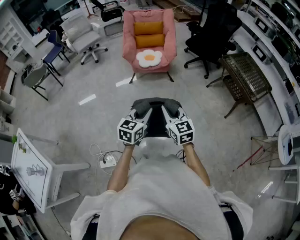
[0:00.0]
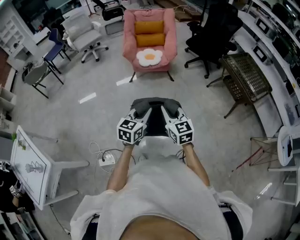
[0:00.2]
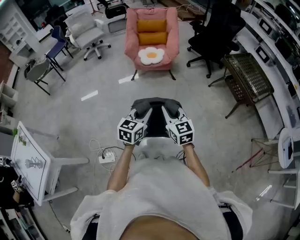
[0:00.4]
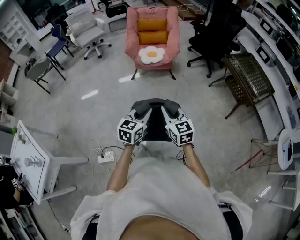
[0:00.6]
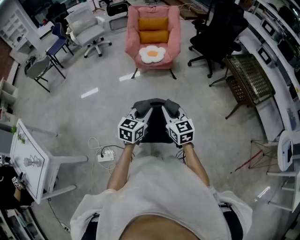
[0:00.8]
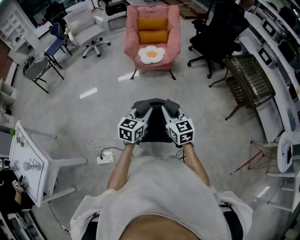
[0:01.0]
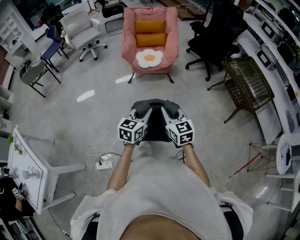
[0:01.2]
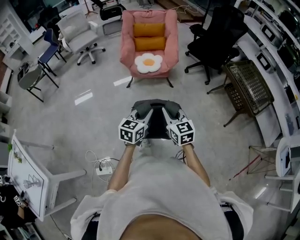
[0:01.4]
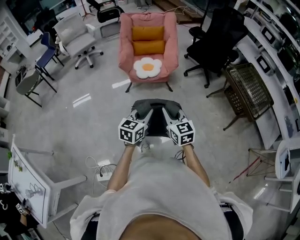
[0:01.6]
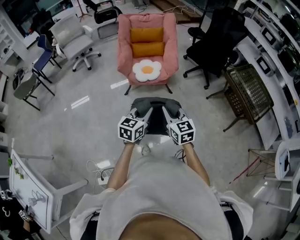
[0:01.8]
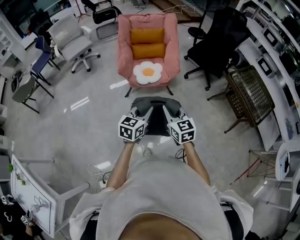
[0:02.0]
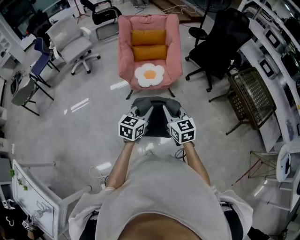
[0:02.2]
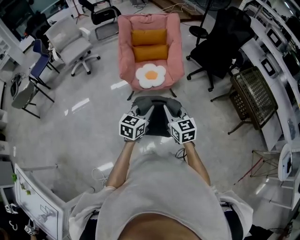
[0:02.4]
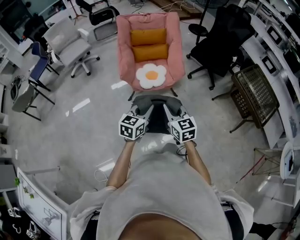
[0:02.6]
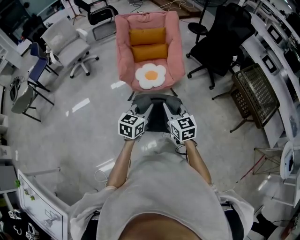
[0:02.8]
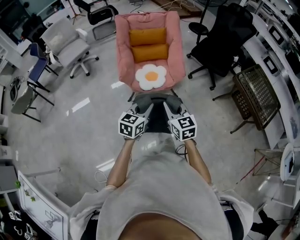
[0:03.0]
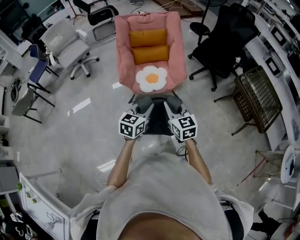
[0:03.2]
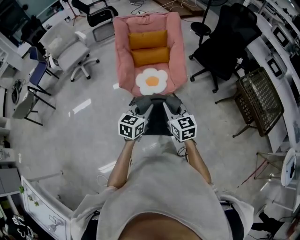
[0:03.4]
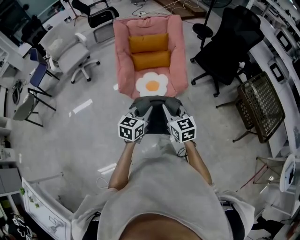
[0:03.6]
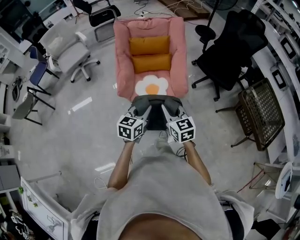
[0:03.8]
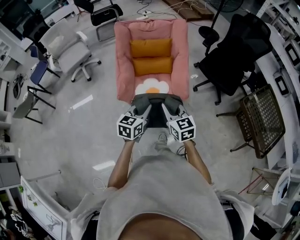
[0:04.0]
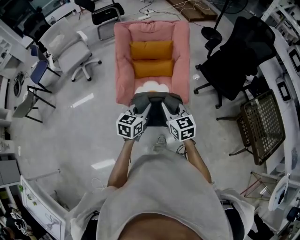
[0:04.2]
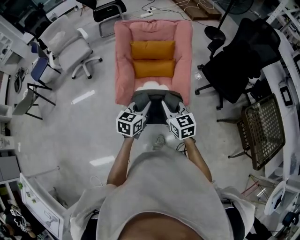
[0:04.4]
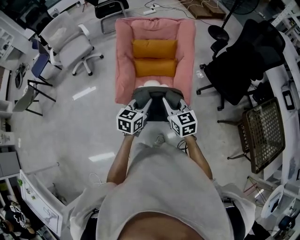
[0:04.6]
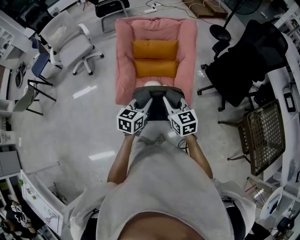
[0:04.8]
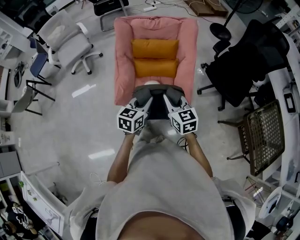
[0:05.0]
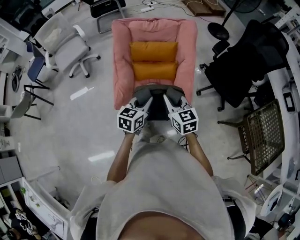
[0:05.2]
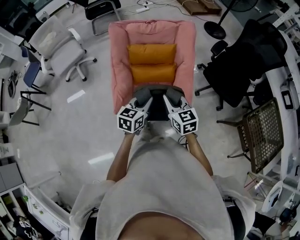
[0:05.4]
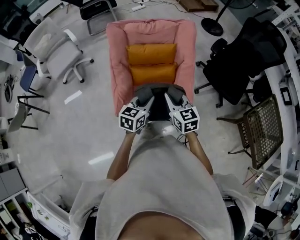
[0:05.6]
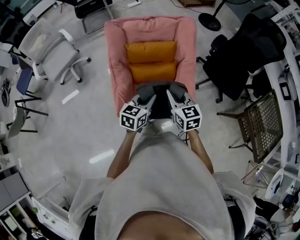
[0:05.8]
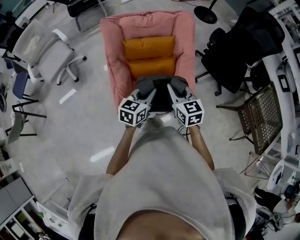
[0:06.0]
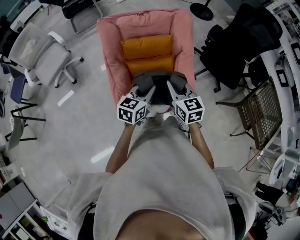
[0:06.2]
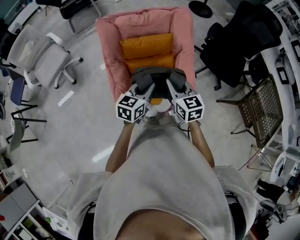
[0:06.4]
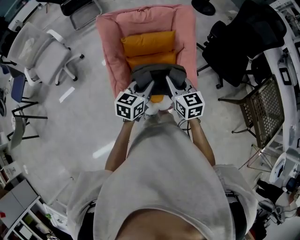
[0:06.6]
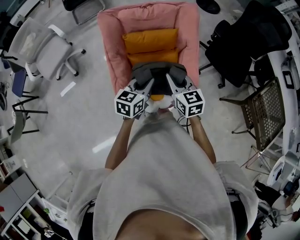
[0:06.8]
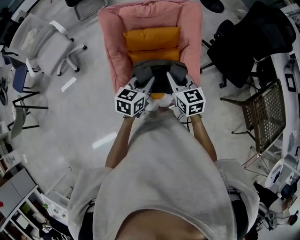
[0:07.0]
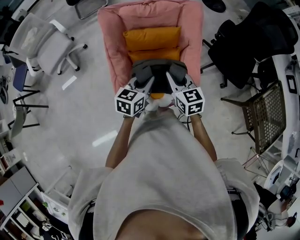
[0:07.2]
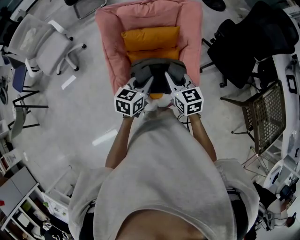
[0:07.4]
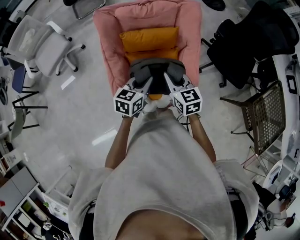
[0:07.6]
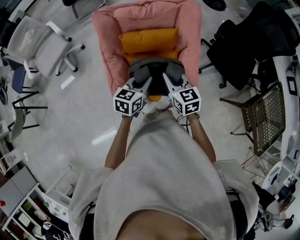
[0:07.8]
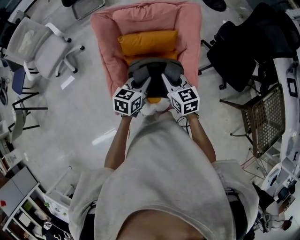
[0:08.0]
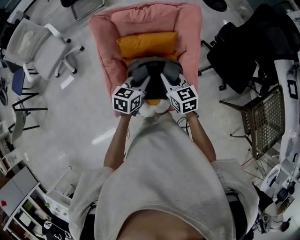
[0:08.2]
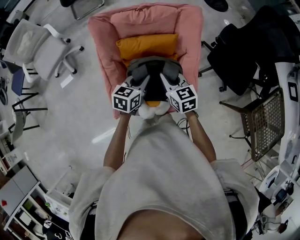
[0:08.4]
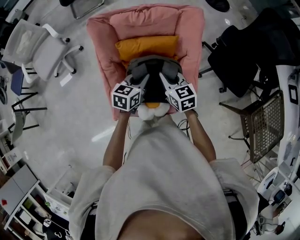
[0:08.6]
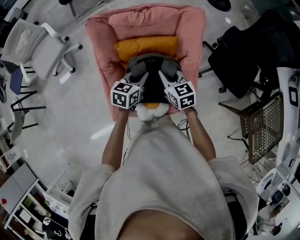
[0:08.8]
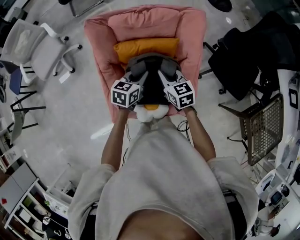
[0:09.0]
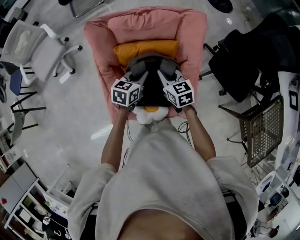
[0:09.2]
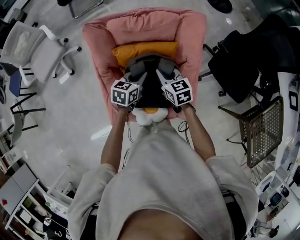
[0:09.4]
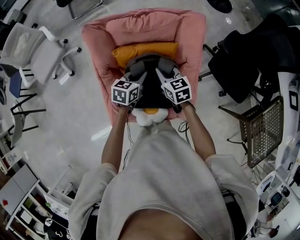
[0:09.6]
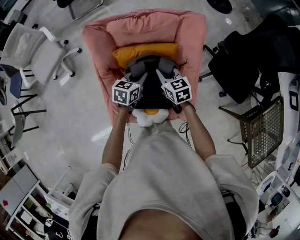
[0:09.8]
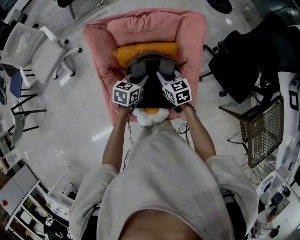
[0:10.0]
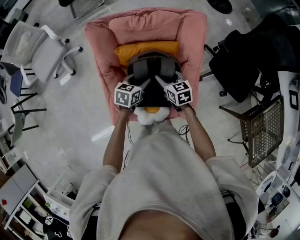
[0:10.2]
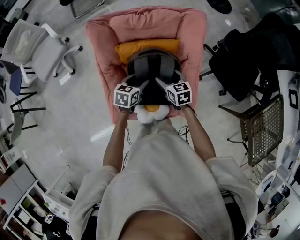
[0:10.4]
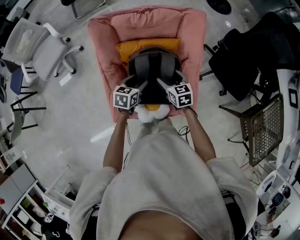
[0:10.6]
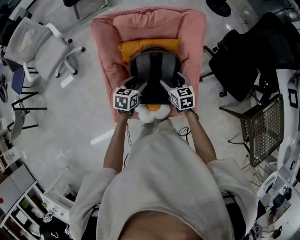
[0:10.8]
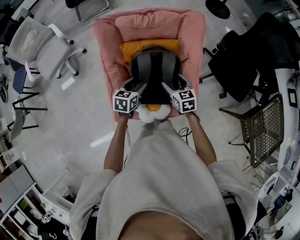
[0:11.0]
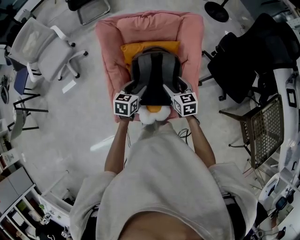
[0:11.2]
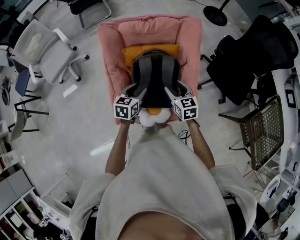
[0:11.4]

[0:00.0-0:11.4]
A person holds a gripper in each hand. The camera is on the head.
0:00.0 to 0:01.4: Both grippers travel together forward, roughly 15 cm.
0:01.4 to 0:02.8: Both grippers move forward, roughly 25 cm.
0:02.8 to 0:04.2: The grippers both shift forward by roughly 30 cm.
0:04.2 to 0:05.6: Both grippers move forward, approximately 20 cm.
0:05.6 to 0:07.2: Both grippers travel together forward, approximately 10 cm.
0:07.2 to 0:08.6: Both grippers move forward and downward, approximately 15 cm.
0:08.6 to 0:10.0: The left gripper goes approximately 10 cm downward and forward. The right gripper travels forward and downward by about 10 cm.
0:10.0 to 0:11.4: The right gripper travels backward and upward by about 15 cm, and opens. Meanwhile the left gripper goes about 15 cm backward, and opens up.

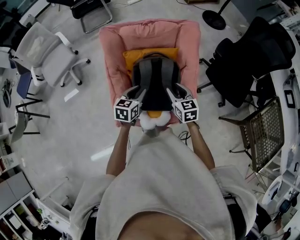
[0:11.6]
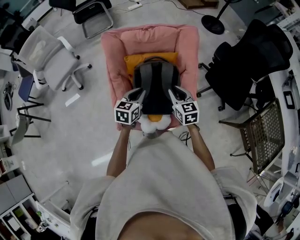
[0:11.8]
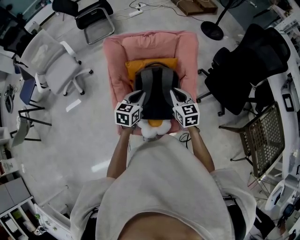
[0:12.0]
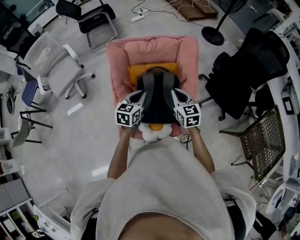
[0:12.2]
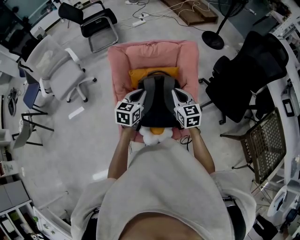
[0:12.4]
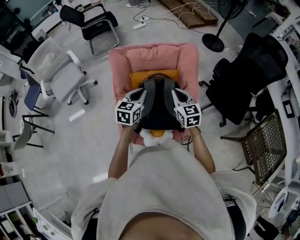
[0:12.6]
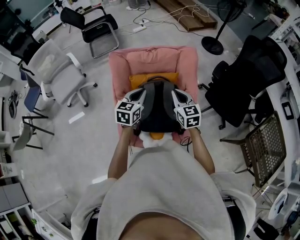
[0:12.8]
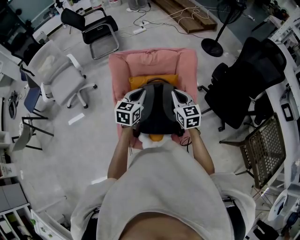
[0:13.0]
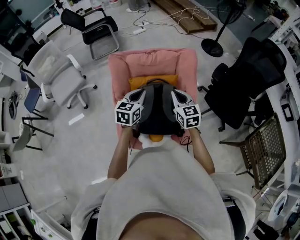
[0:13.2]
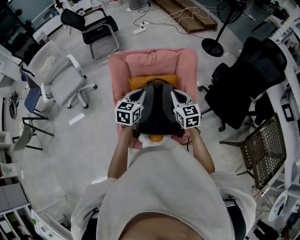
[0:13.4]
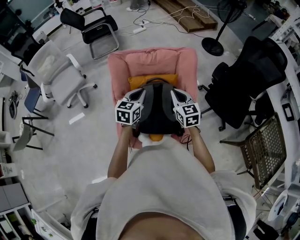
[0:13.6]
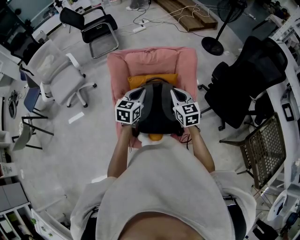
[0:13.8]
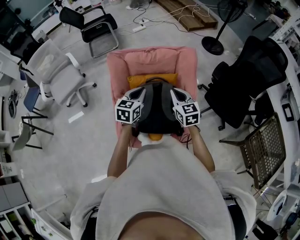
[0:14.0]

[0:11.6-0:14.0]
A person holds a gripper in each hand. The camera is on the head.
0:11.6 to 0:12.8: The two grippers go some 10 cm upward. The right gripper closes its fingers; the left gripper closes its fingers.
0:12.8 to 0:14.0: The grippers stay close to where they were, moving slightly.

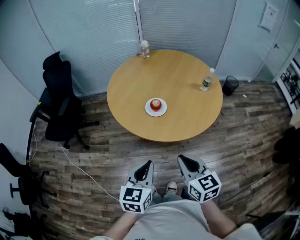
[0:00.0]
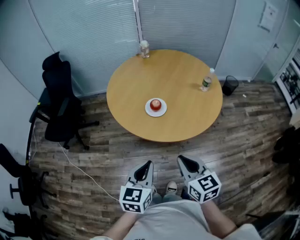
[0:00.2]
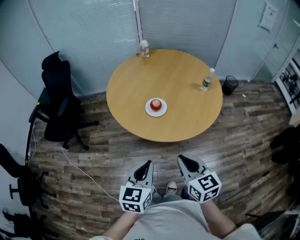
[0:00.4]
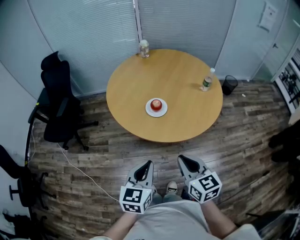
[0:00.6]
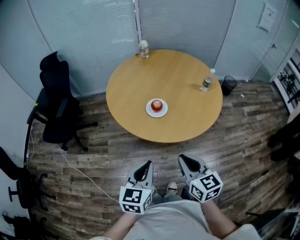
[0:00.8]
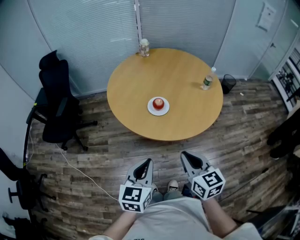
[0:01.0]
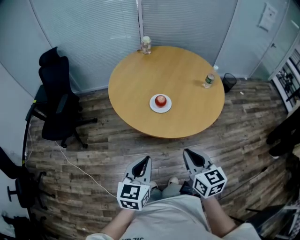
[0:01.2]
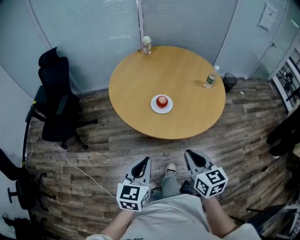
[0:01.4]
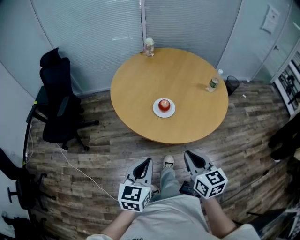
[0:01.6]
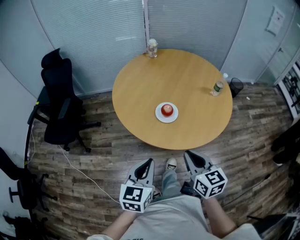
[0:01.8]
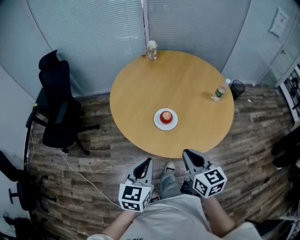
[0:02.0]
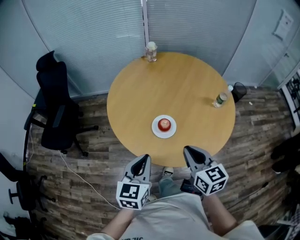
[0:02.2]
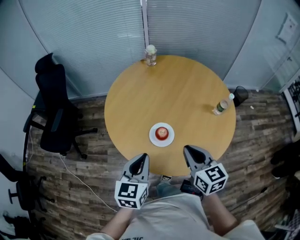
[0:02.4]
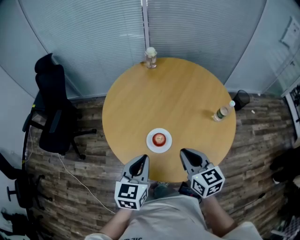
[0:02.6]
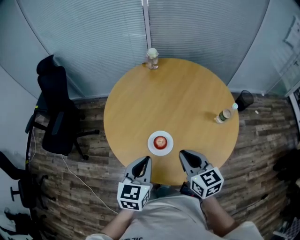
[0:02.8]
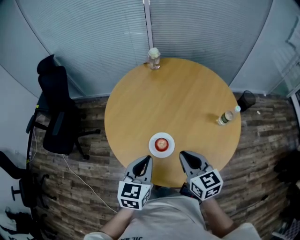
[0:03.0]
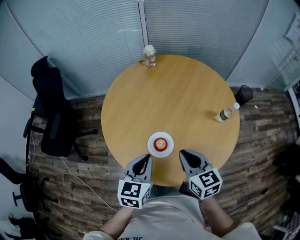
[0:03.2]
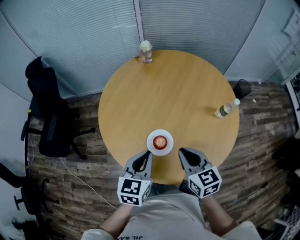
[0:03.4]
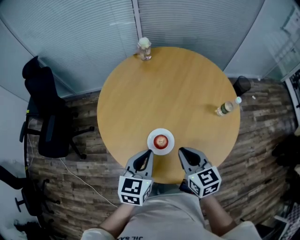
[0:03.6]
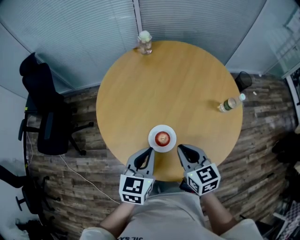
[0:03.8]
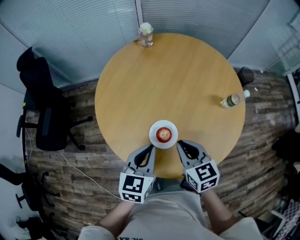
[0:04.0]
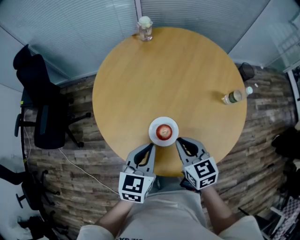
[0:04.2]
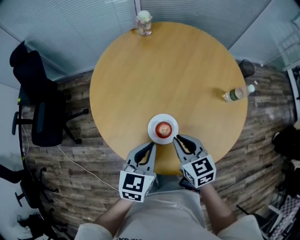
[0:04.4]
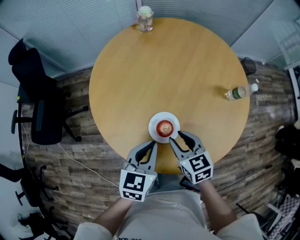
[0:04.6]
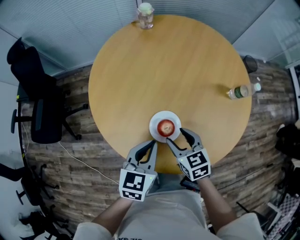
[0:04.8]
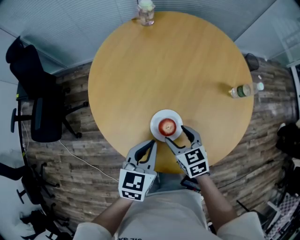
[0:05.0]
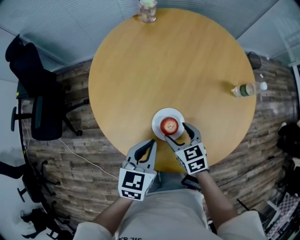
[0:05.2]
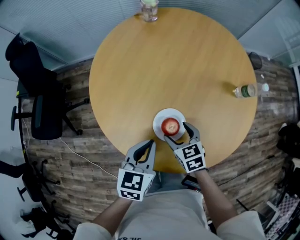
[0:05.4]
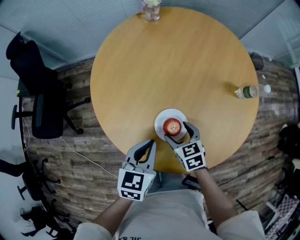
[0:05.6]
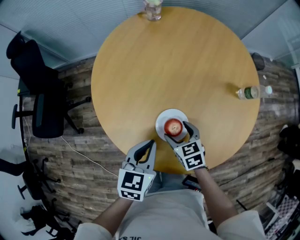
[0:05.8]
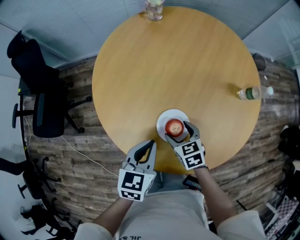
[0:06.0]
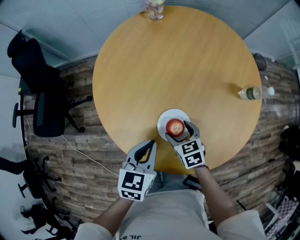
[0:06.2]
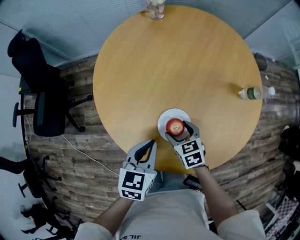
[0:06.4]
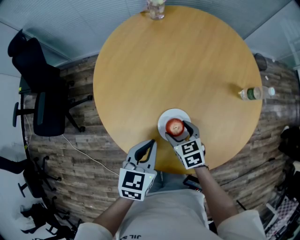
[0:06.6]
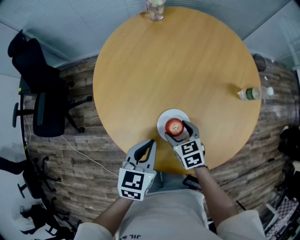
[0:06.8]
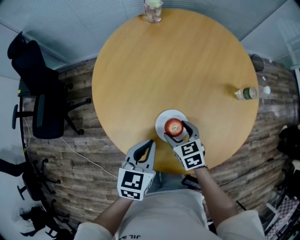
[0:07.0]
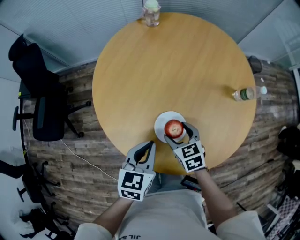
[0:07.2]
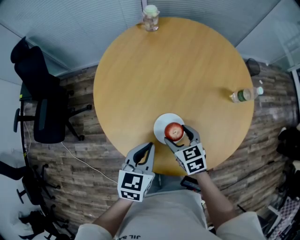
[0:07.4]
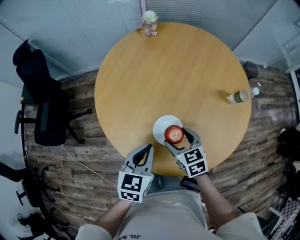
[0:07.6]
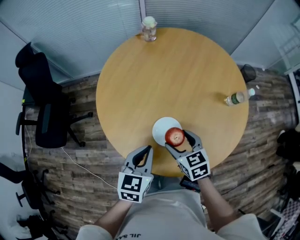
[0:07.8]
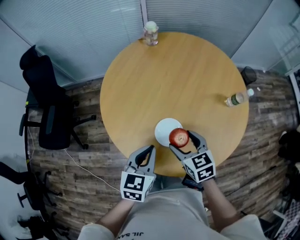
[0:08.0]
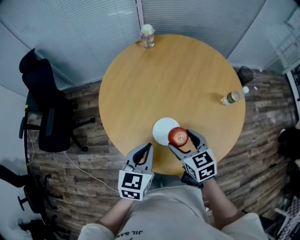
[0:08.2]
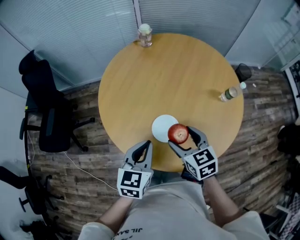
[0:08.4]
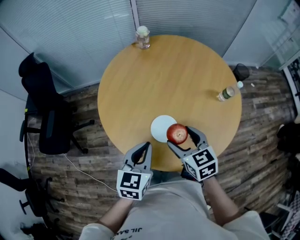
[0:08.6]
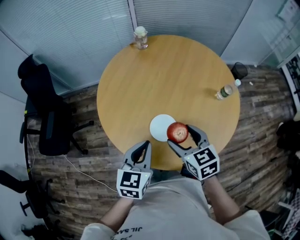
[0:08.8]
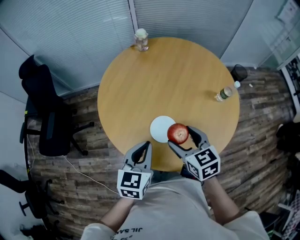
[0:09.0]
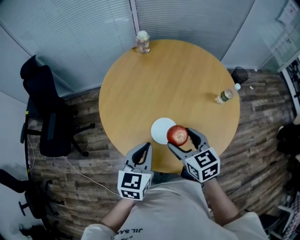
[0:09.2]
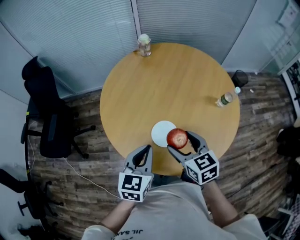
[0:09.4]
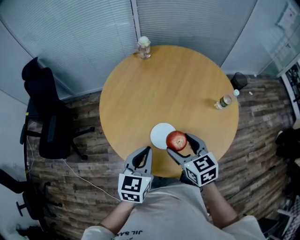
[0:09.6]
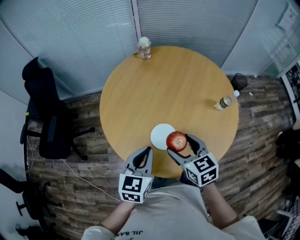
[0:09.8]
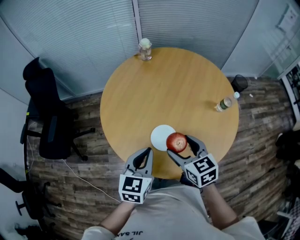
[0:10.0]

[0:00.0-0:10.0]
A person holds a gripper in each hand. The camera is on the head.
0:00.0 to 0:01.4: The left gripper travels to the left by approximately 5 cm.
0:01.4 to 0:02.8: The two grippers go approximately 25 cm forward.
0:02.8 to 0:04.2: The right gripper travels downward by approximately 10 cm, while the left gripper goes some 10 cm downward and forward.
0:04.2 to 0:05.8: The right gripper shifts approximately 15 cm downward, and opens up; the left gripper moves downward, roughly 5 cm.
0:05.8 to 0:07.2: The grippers move only a little.
0:07.2 to 0:08.6: The right gripper shifts some 15 cm upward, while the left gripper goes about 5 cm upward.
0:08.6 to 0:10.0: There are only small adjustments of the grippers.
